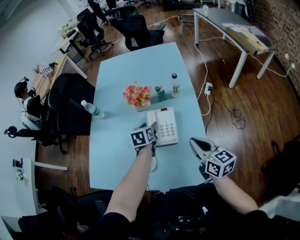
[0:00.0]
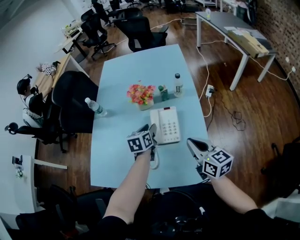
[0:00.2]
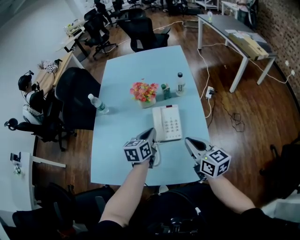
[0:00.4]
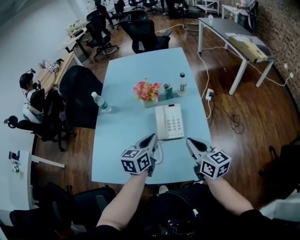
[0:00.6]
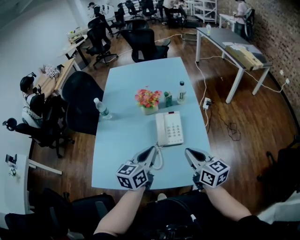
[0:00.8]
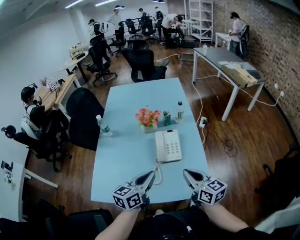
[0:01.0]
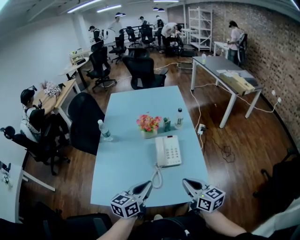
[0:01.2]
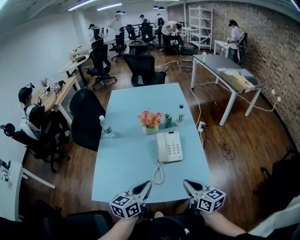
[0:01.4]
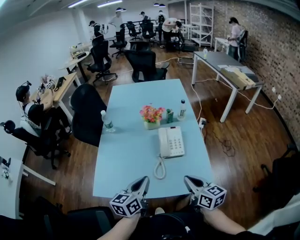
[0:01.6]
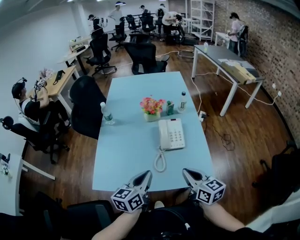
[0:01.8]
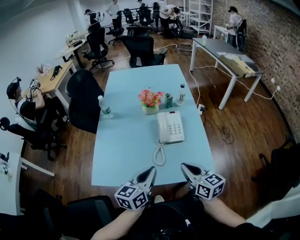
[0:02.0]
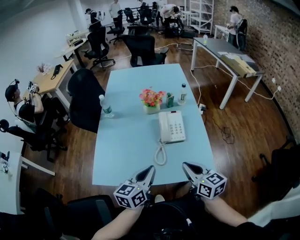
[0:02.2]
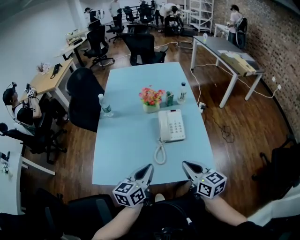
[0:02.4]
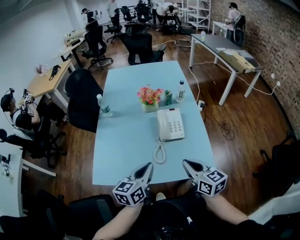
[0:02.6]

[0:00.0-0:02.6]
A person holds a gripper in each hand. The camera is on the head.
0:00.0 to 0:01.2: The left gripper moves backward and upward, approximately 30 cm, swivels approximately 30 degrees, and closes its fingers; the right gripper is displaced backward and to the left by about 15 cm.
0:01.2 to 0:02.6: The grippers make only small movements.

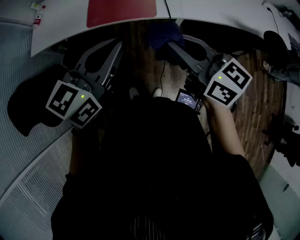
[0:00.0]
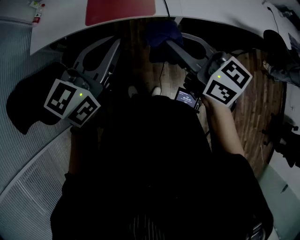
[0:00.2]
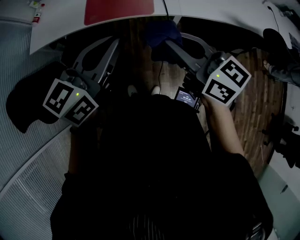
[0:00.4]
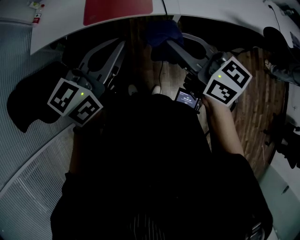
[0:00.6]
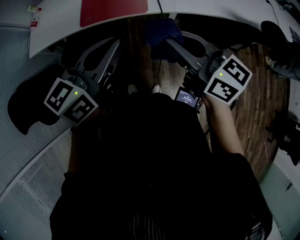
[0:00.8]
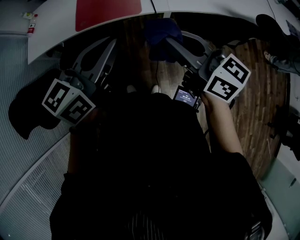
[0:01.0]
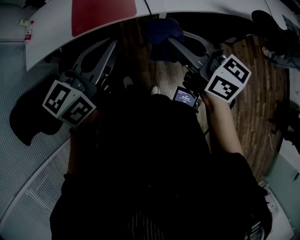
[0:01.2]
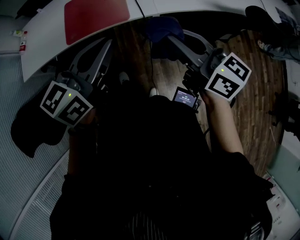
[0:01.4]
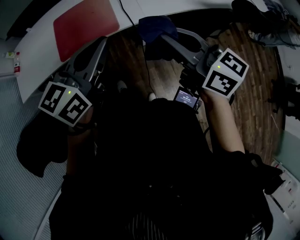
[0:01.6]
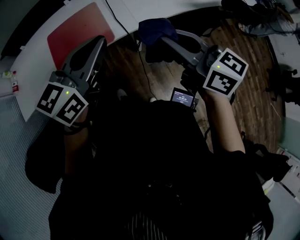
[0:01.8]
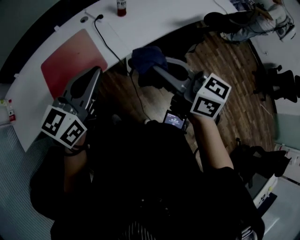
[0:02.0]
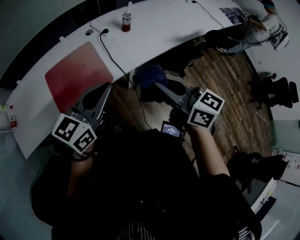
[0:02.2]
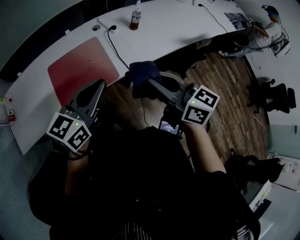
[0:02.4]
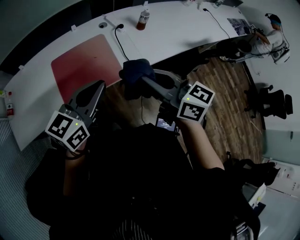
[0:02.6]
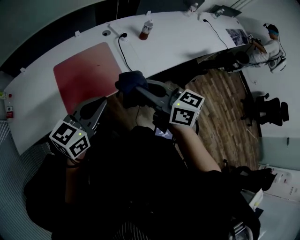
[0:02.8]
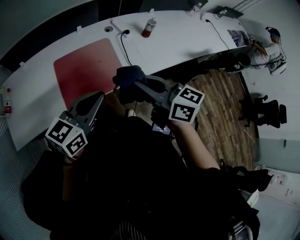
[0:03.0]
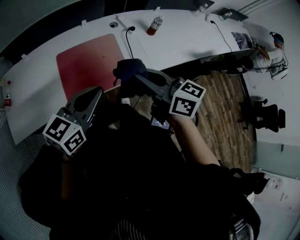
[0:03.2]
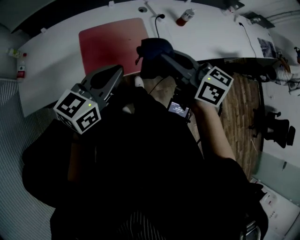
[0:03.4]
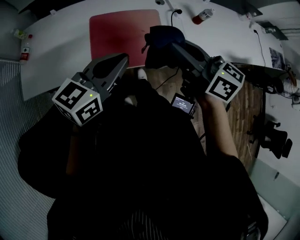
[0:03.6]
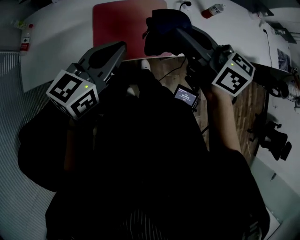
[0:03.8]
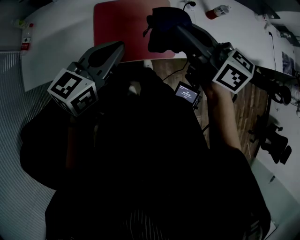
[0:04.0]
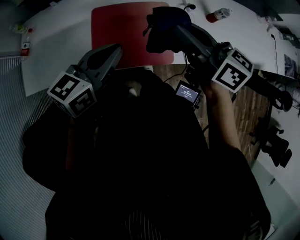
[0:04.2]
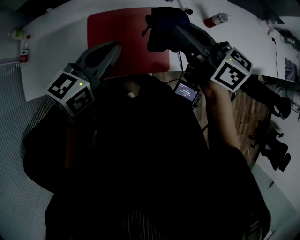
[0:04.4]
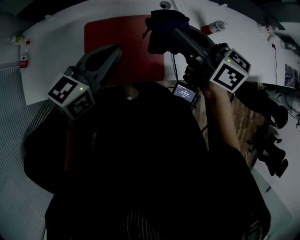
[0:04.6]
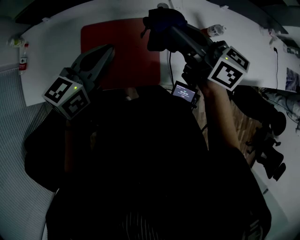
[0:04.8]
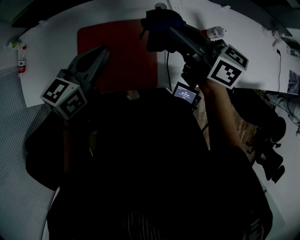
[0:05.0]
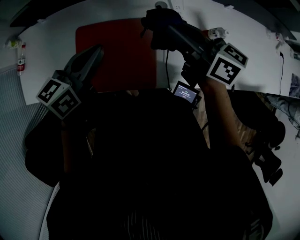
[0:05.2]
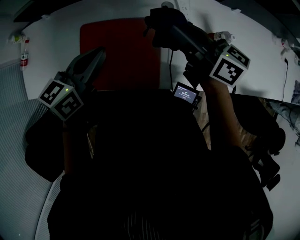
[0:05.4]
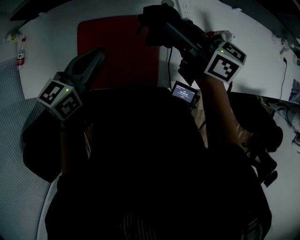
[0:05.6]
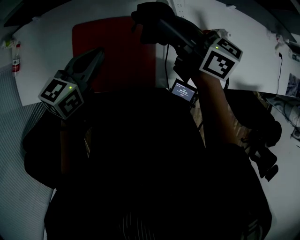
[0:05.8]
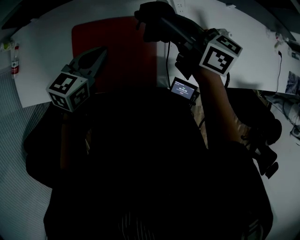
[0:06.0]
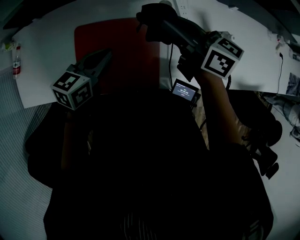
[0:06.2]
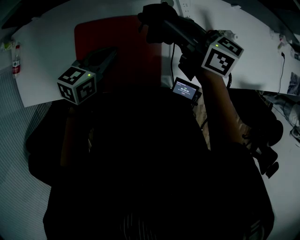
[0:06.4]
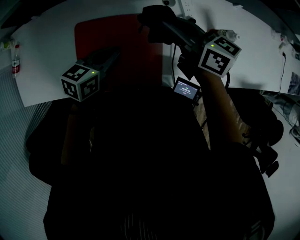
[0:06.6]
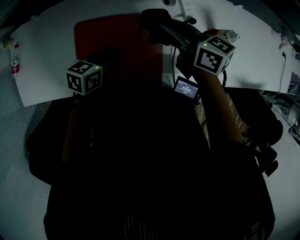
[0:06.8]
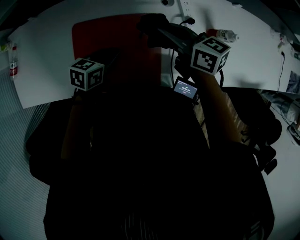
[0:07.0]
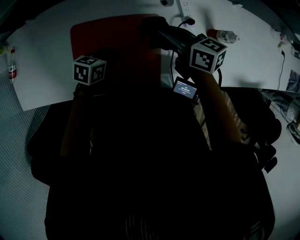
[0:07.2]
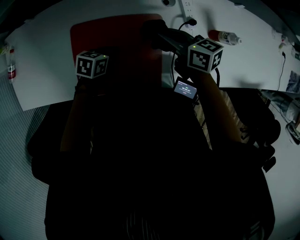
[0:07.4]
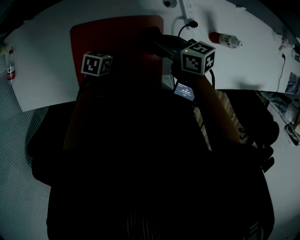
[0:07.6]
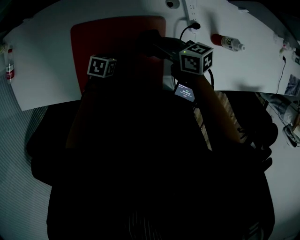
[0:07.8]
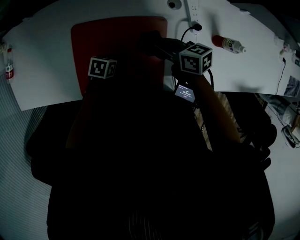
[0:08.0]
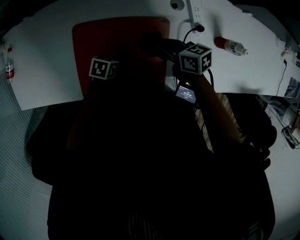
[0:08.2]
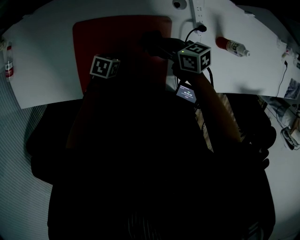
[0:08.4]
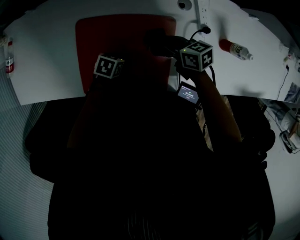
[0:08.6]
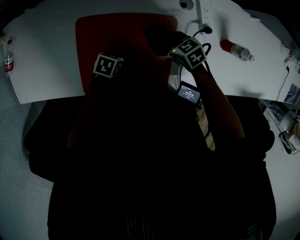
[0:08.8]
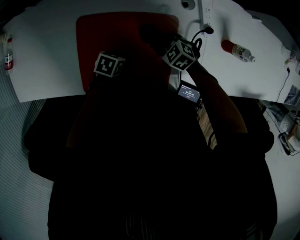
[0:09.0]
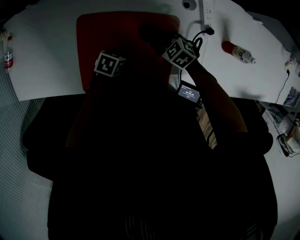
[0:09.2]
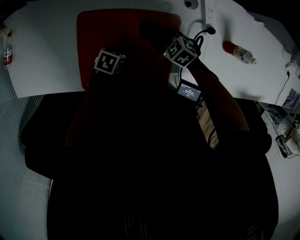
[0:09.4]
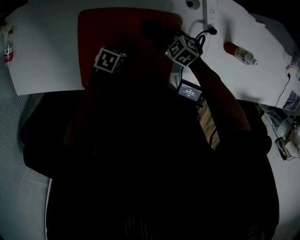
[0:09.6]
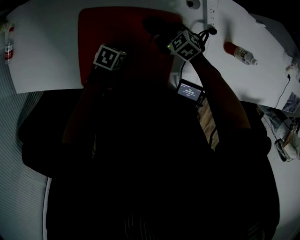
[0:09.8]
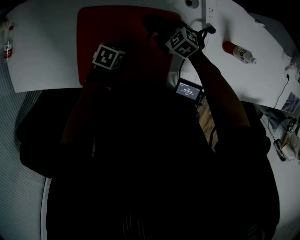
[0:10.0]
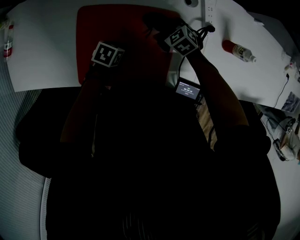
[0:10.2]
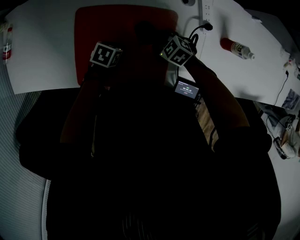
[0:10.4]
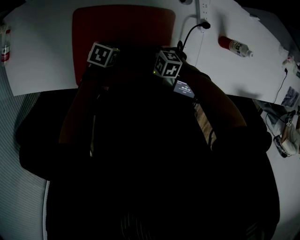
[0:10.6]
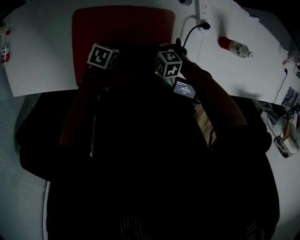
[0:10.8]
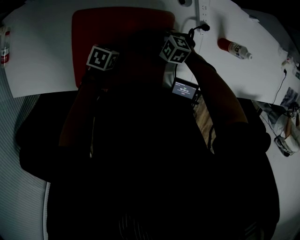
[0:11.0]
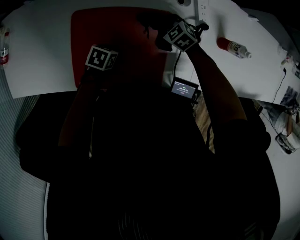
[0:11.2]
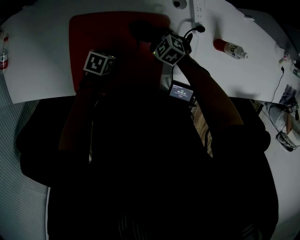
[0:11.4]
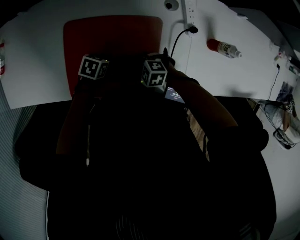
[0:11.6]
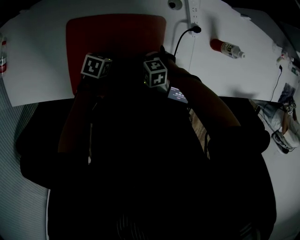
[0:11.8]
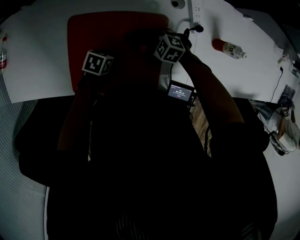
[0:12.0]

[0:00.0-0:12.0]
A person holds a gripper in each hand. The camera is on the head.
0:00.0 to 0:01.6: The left gripper is displaced to the right and forward by some 10 cm; the right gripper moves to the right, some 10 cm.
0:01.6 to 0:03.0: Both grippers move to the left and forward, roughly 20 cm.
0:03.0 to 0:04.4: The two grippers go about 20 cm forward.
0:04.4 to 0:06.0: The left gripper is displaced to the left and backward by roughly 10 cm, and swivels approximately 20 degrees; the right gripper goes approximately 10 cm to the left, and travels backward and back again, roughly 10 cm each way.
0:06.0 to 0:07.6: Both grippers move downward, approximately 20 cm. The right gripper turns by some 20 degrees, while the left gripper swivels roughly 30 degrees.
0:07.6 to 0:09.0: The right gripper moves downward, about 15 cm, and rotates around the line of its fingers by roughly 50 degrees, counterclockwise from behind.
0:09.0 to 0:10.4: The grippers stay close to where they were, moving slightly.

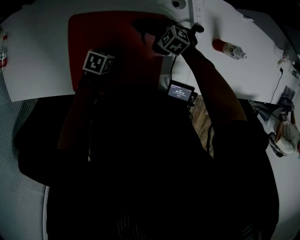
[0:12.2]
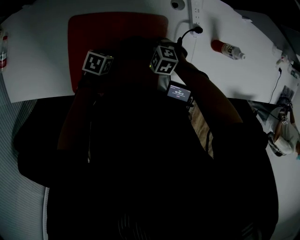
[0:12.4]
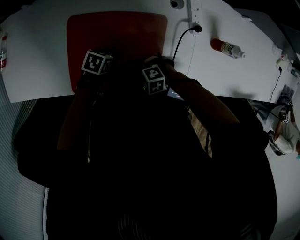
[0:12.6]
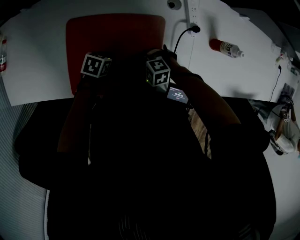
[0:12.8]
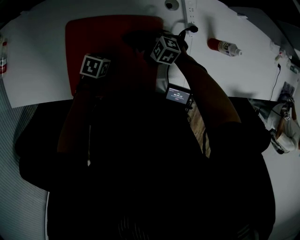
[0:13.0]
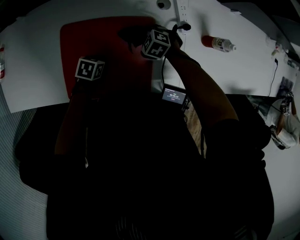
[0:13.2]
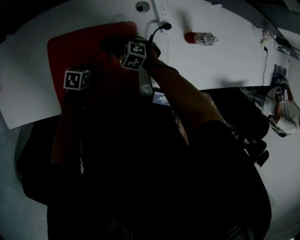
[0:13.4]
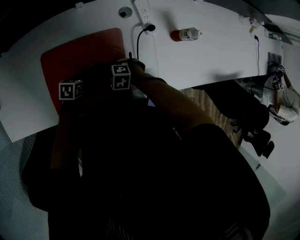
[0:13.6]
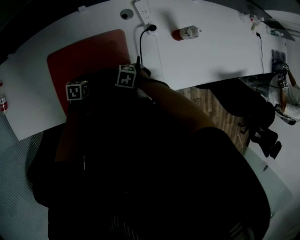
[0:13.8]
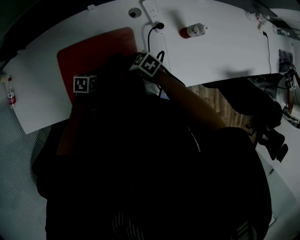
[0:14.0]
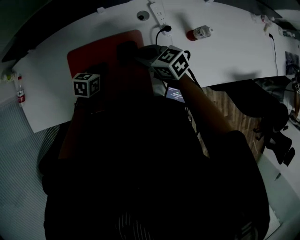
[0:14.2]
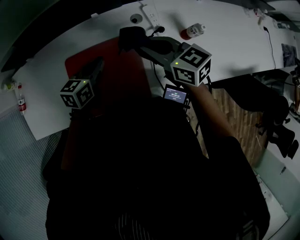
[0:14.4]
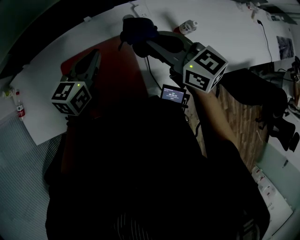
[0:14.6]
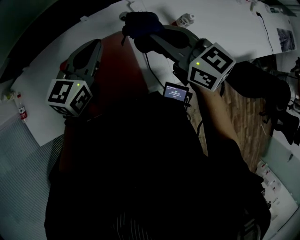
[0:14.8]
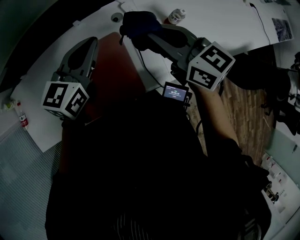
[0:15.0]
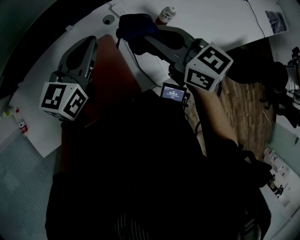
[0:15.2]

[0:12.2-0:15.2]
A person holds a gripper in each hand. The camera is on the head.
0:12.2 to 0:13.8: The right gripper shifts by approximately 15 cm, and swivels about 20 degrees.
0:13.8 to 0:15.2: Both grippers move upward, some 40 cm. The left gripper tilts its fingers some 50 degrees upward; the right gripper tips its fingers upward by about 50 degrees.

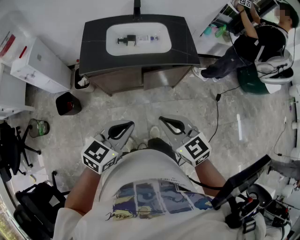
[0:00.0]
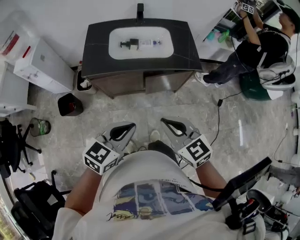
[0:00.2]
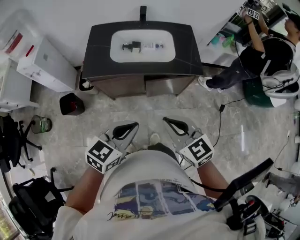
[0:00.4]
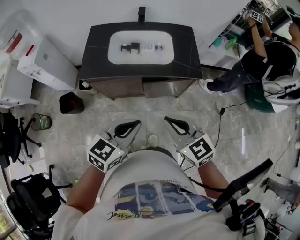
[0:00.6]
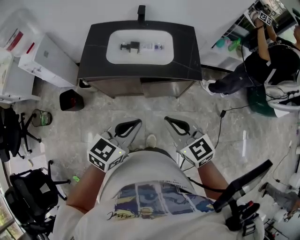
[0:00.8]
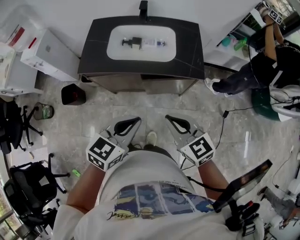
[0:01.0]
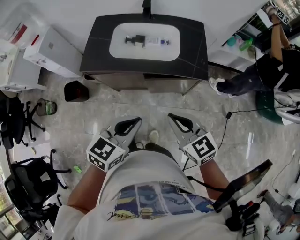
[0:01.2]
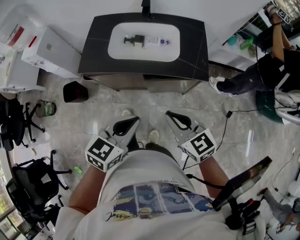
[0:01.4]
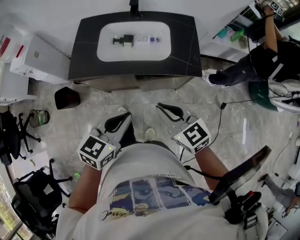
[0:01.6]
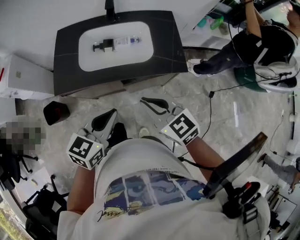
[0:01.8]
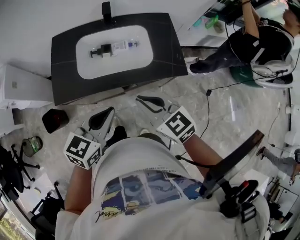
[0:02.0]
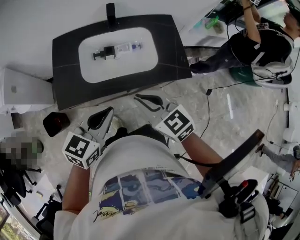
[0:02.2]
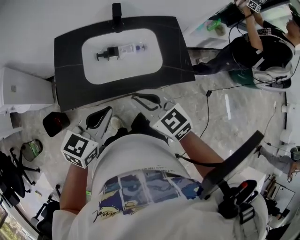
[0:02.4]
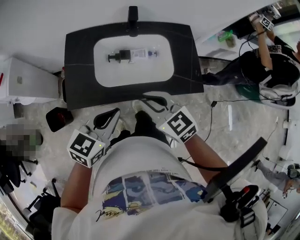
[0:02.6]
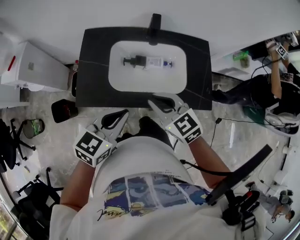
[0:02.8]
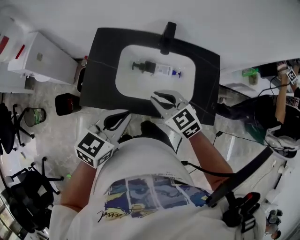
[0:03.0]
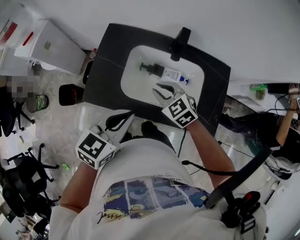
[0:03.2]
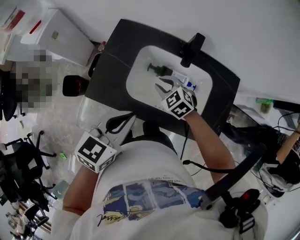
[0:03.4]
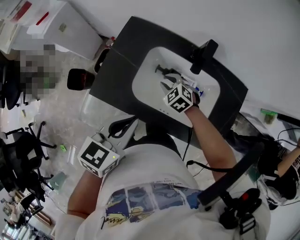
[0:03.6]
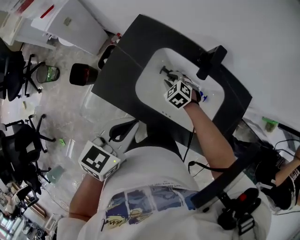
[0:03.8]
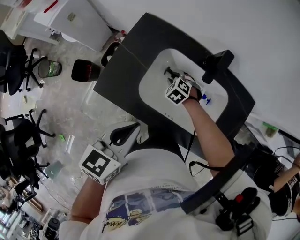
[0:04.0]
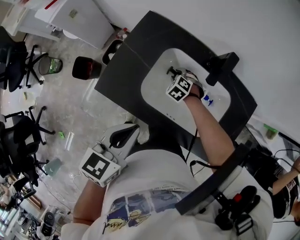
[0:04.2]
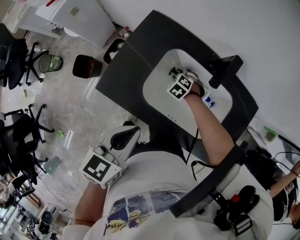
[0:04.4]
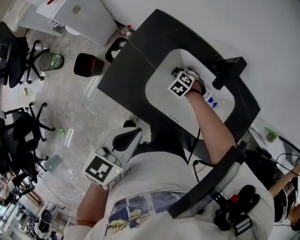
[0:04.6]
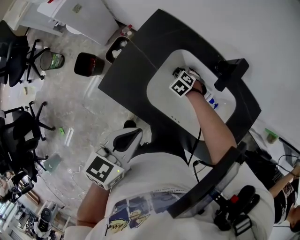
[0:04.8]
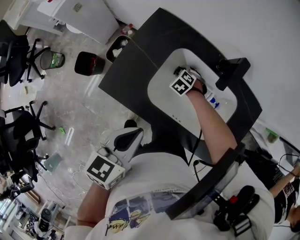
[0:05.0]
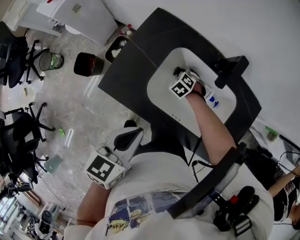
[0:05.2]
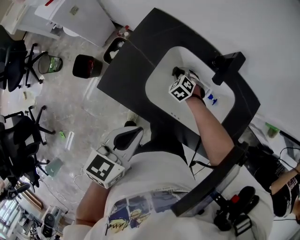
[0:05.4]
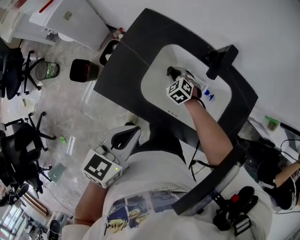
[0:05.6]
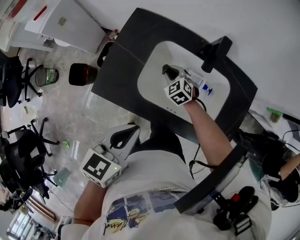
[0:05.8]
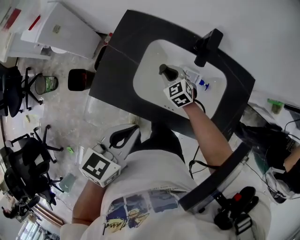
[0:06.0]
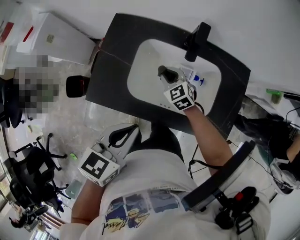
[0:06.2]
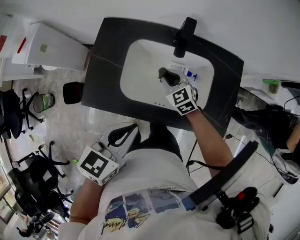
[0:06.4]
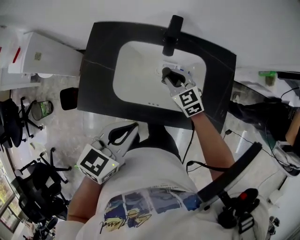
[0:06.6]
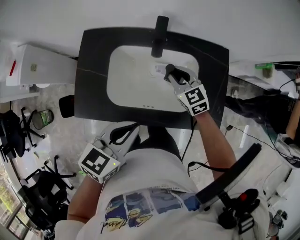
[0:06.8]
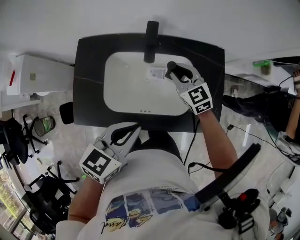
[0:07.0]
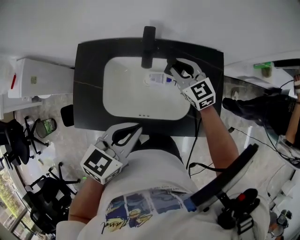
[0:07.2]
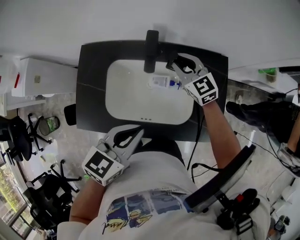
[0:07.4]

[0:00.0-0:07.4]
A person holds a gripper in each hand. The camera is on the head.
0:00.0 to 0:01.4: The grippers both shift to the right and forward by approximately 15 cm.
0:01.4 to 0:03.0: Both grippers travel together forward and to the left, some 30 cm.
0:03.0 to 0:04.4: The right gripper heads downward and forward, covering some 35 cm, and tilts its fingers approximately 40 degrees downward. The left gripper moves some 5 cm, and swivels approximately 30 degrees.
0:04.4 to 0:06.0: The right gripper travels upward by approximately 10 cm, and turns by about 40 degrees.
0:06.0 to 0:07.4: The left gripper goes approximately 15 cm to the right and forward, and rotates roughly 20 degrees. Meanwhile the right gripper heads to the right, upward and forward, covering approximately 25 cm, and changes its angle by some 30 degrees.
